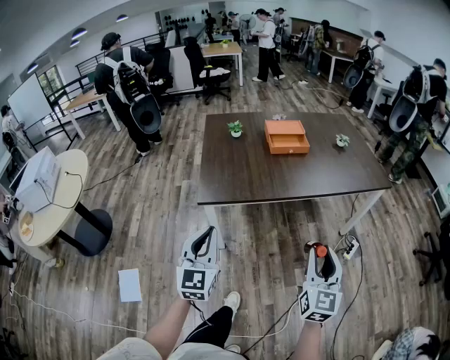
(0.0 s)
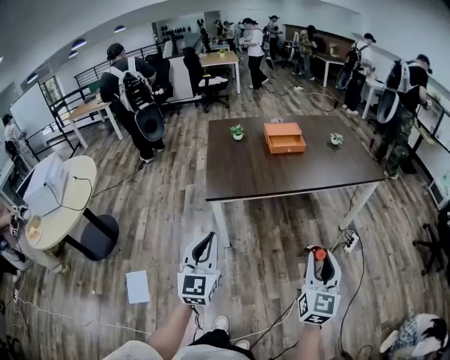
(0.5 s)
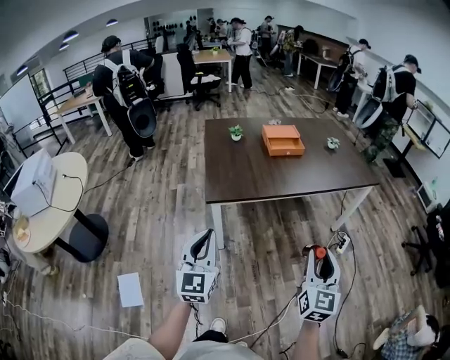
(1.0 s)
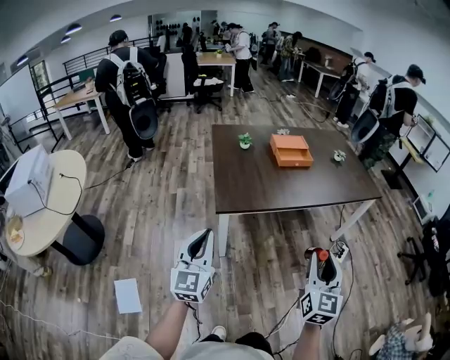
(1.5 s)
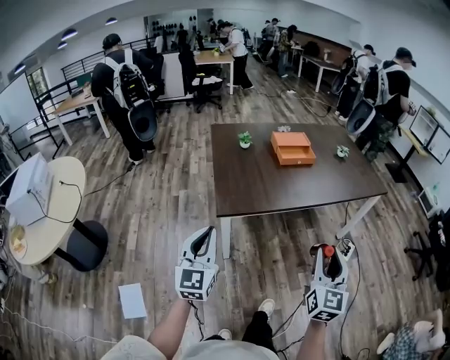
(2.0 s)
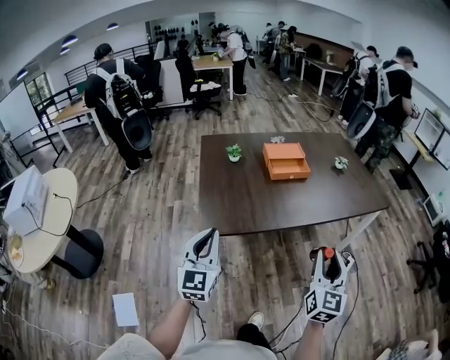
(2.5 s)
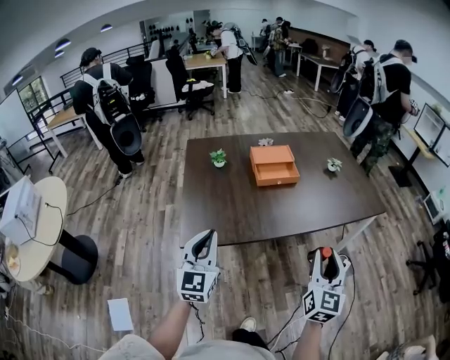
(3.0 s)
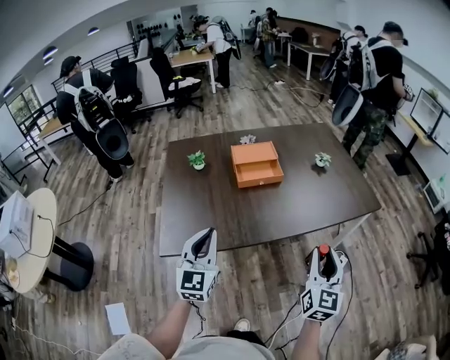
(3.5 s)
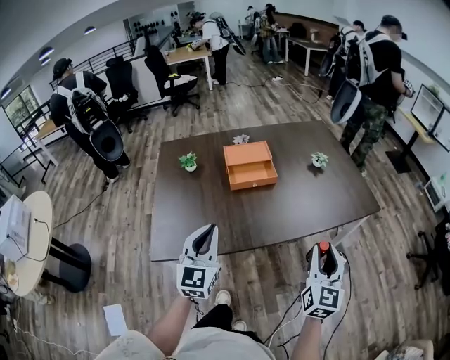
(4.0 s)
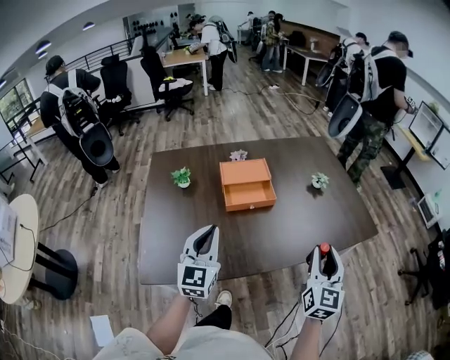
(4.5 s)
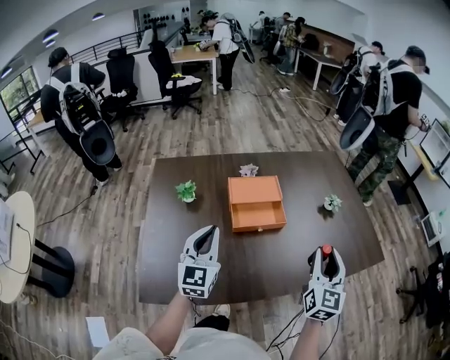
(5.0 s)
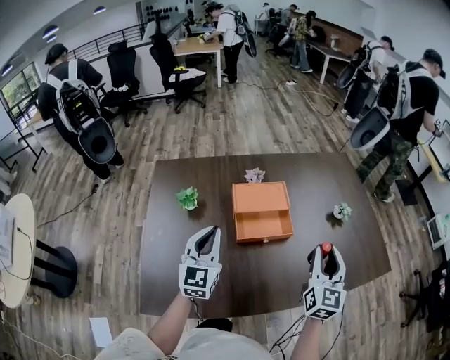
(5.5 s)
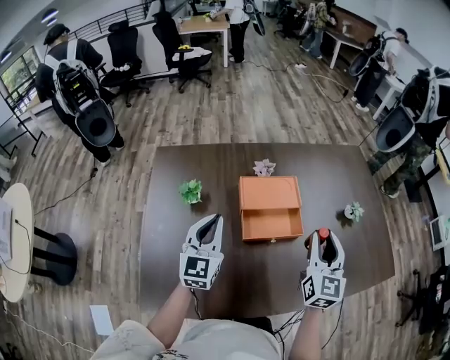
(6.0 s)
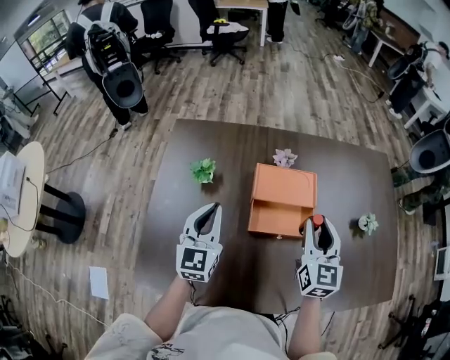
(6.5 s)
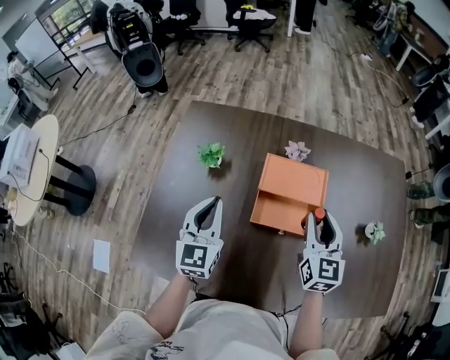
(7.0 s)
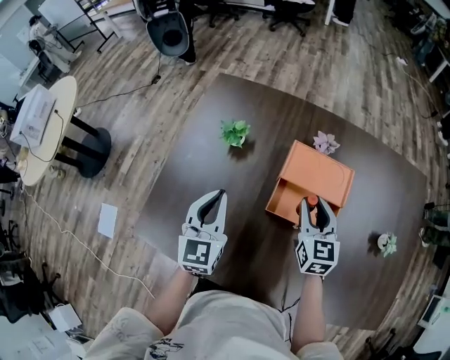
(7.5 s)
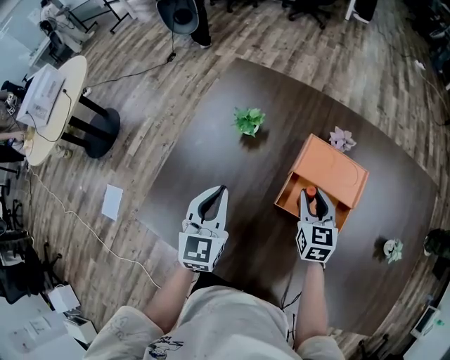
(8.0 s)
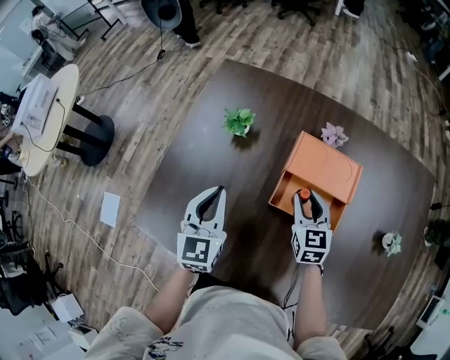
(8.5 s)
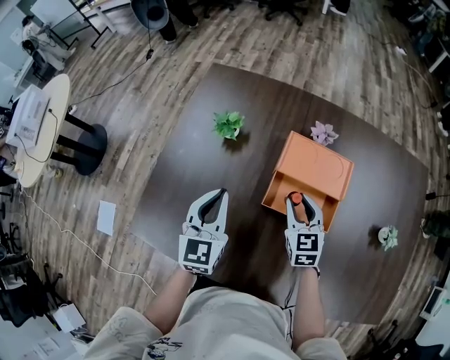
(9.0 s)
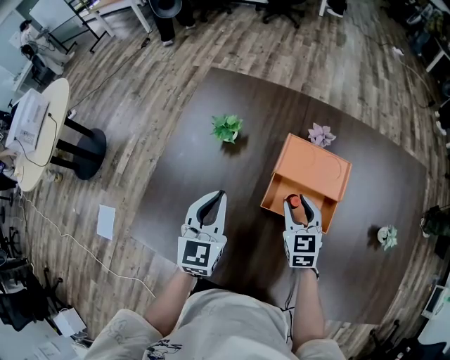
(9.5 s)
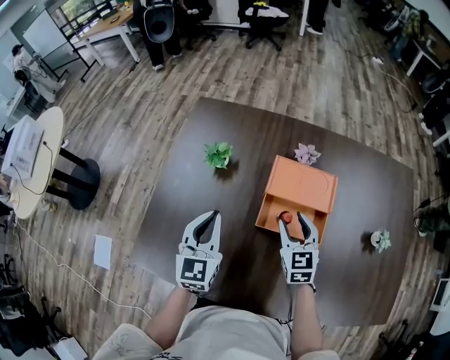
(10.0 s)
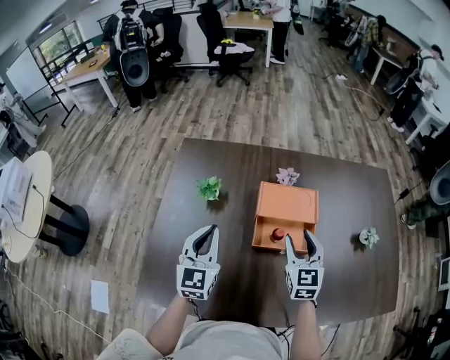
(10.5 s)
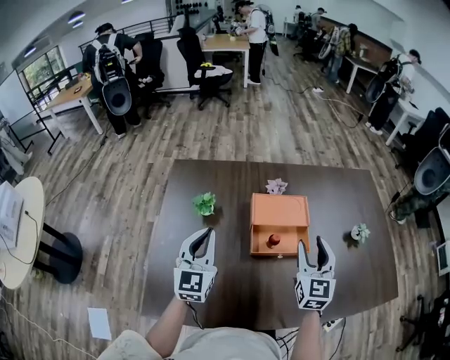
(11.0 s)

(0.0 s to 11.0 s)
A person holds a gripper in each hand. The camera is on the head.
0.0 s - 2.0 s: The left gripper is displaced to the left by roughly 15 cm. The right gripper shifts some 15 cm to the left and upward.
2.0 s - 3.5 s: Both grippers travel together forward and to the right, approximately 35 cm.
3.5 s - 5.5 s: The two grippers go approximately 35 cm forward.
5.5 s - 7.5 s: The left gripper goes about 5 cm downward, and swivels approximately 30 degrees. The right gripper changes place by about 30 cm, and turns by about 40 degrees.
7.5 s - 9.0 s: The right gripper goes approximately 5 cm downward.
9.0 s - 11.0 s: The right gripper travels upward and backward by approximately 20 cm, and swivels roughly 40 degrees. Meanwhile the left gripper heads upward, covering approximately 10 cm, and swivels roughly 20 degrees.

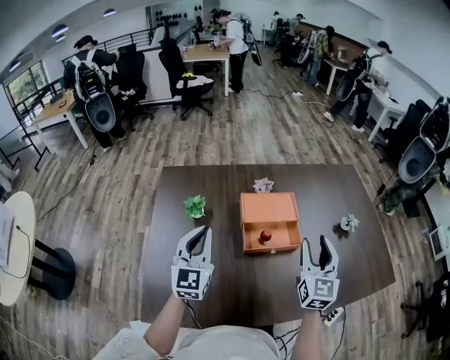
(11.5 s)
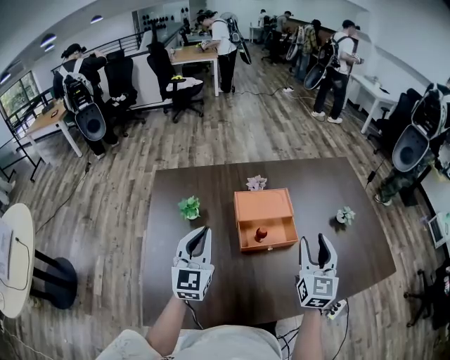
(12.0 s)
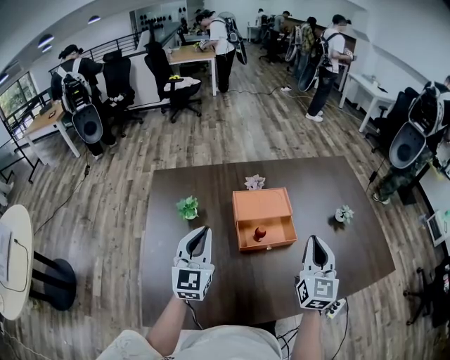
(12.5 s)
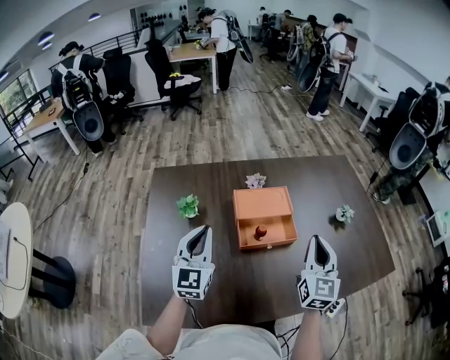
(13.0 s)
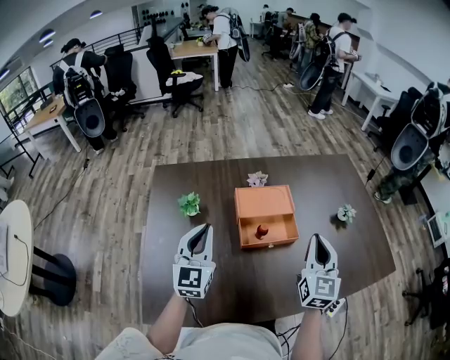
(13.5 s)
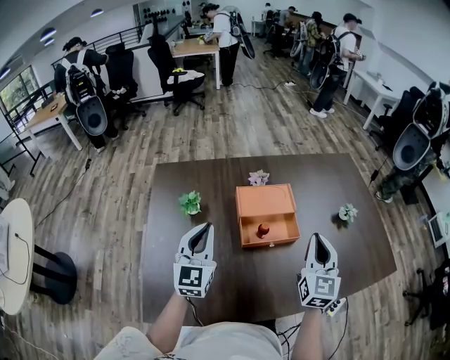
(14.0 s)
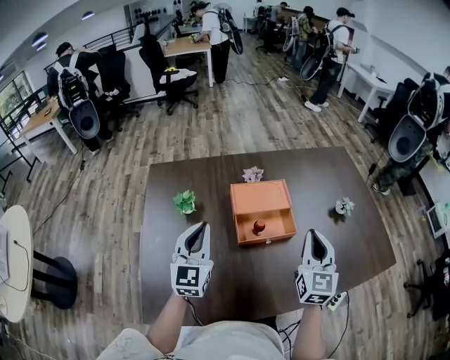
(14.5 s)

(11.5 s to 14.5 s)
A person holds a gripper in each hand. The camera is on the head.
11.5 s - 13.0 s: The right gripper closes up.
13.0 s - 14.5 s: The grippers make only small movements.

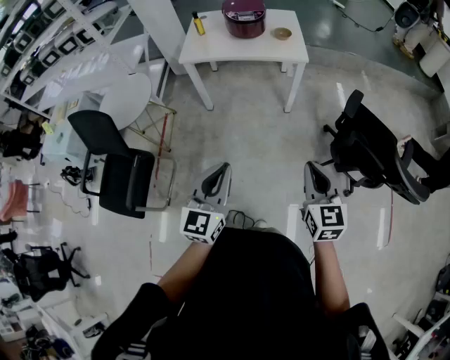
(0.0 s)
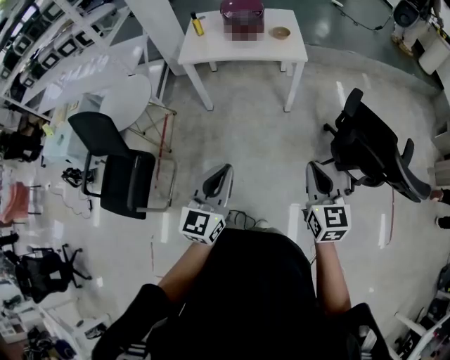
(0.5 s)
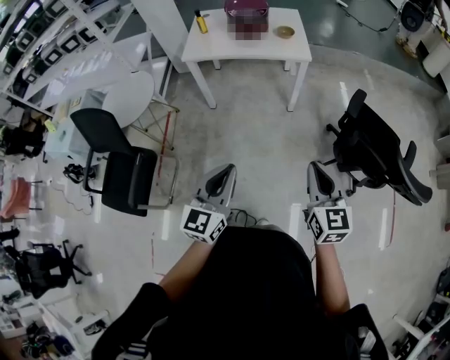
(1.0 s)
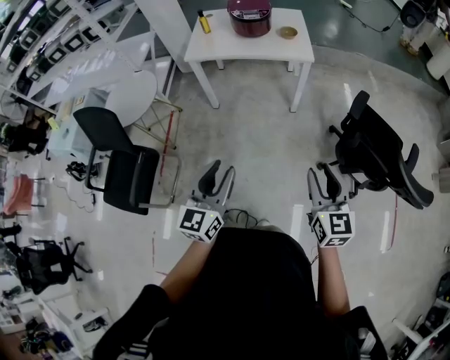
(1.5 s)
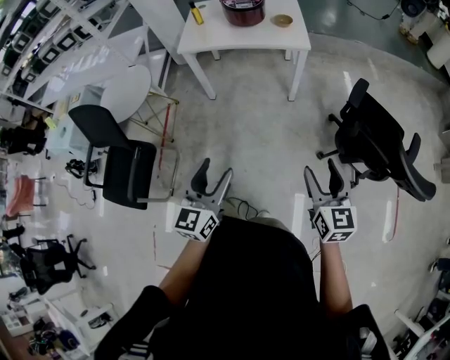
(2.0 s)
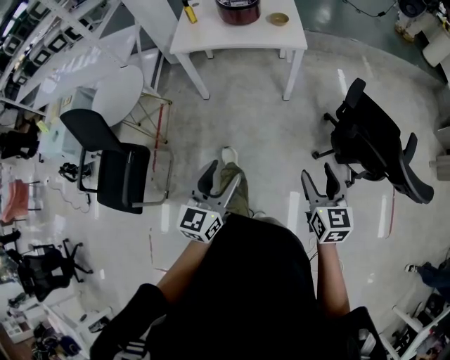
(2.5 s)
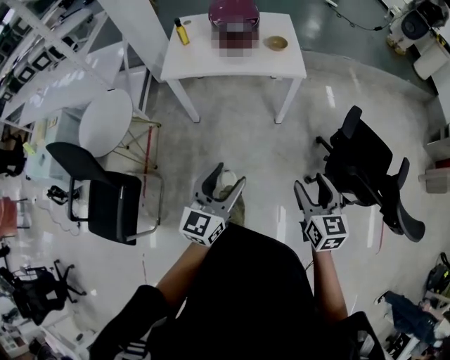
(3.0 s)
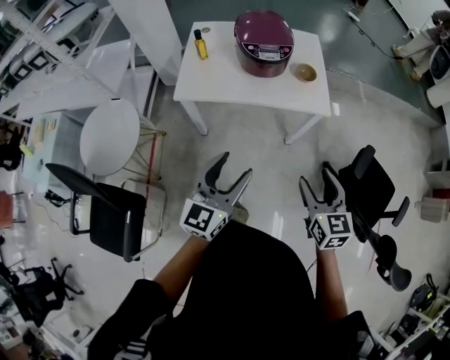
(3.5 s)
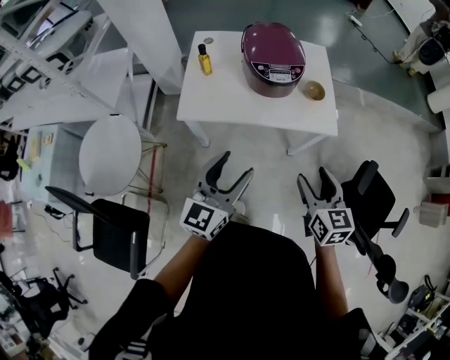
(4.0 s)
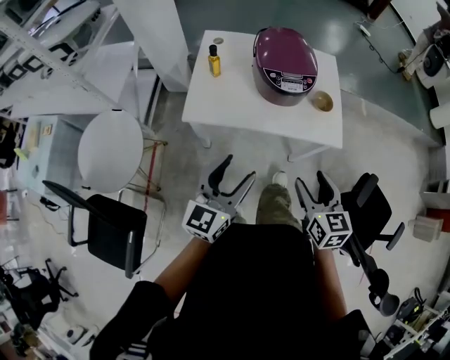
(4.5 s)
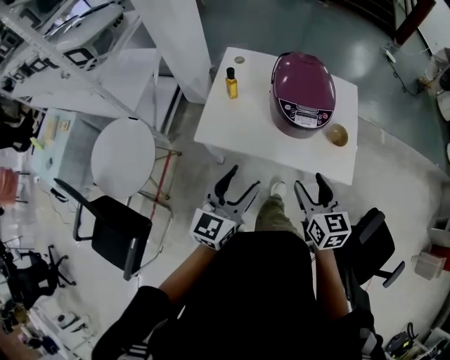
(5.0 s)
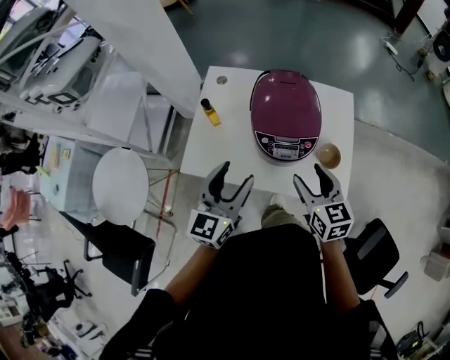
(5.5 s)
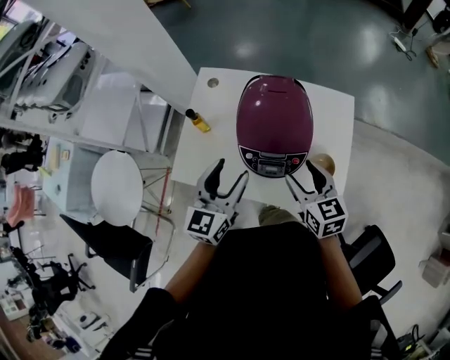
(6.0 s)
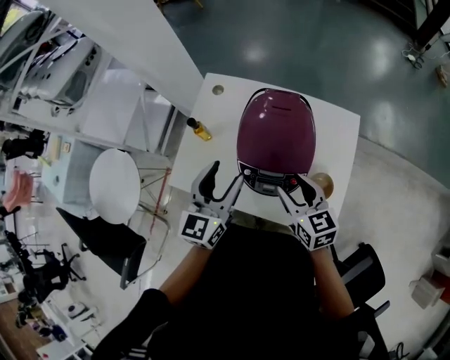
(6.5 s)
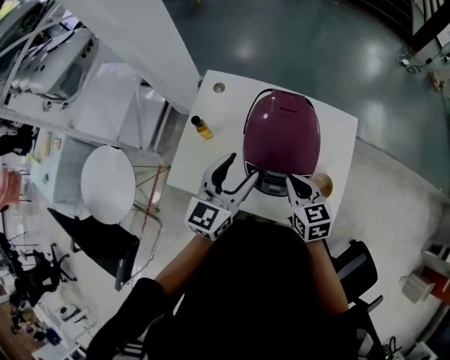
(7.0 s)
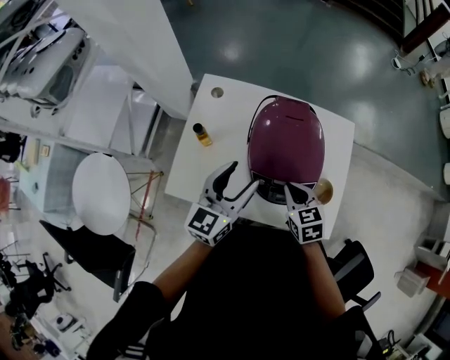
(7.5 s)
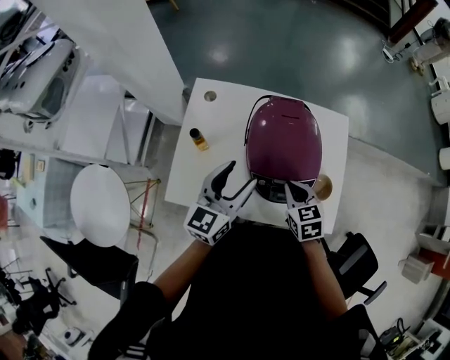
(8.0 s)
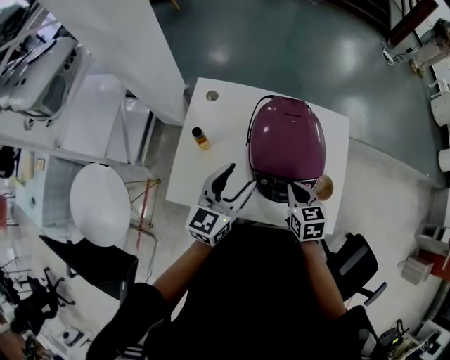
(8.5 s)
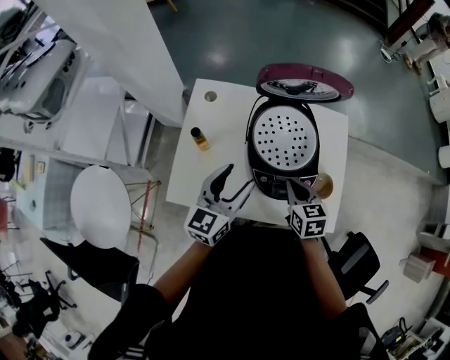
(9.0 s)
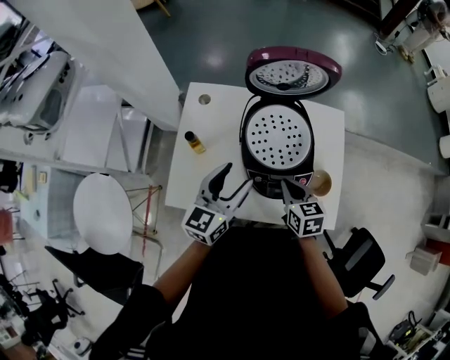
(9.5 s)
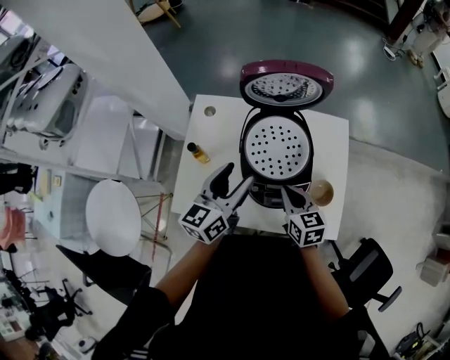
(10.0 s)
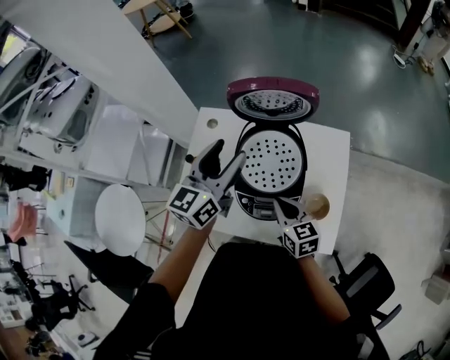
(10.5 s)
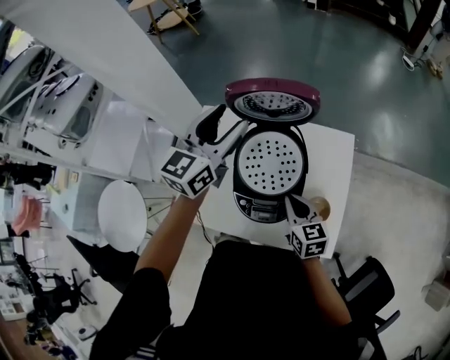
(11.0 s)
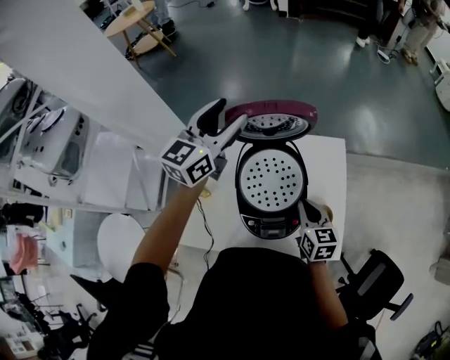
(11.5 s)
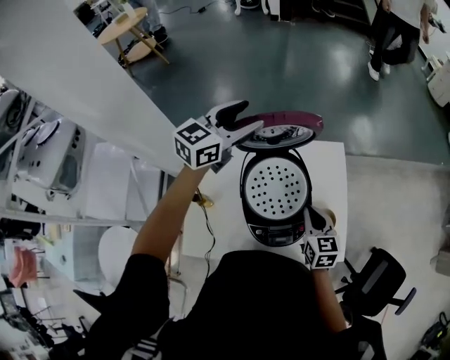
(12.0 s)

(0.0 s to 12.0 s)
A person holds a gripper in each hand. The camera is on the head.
0.0 s - 2.0 s: The left gripper opens its fingers. The right gripper changes place by some 5 cm, and opens.
2.0 s - 4.0 s: The two grippers travel together, forward, some 50 cm.
4.0 s - 6.0 s: The grippers both shift forward by approximately 35 cm. The right gripper turns by roughly 20 degrees.
6.0 s - 8.0 s: The left gripper shifts approximately 5 cm forward; the right gripper goes roughly 10 cm downward and to the left, turns by about 20 degrees, and closes.
8.0 s - 10.0 s: The grippers move only a little.
10.0 s - 12.0 s: The right gripper shifts by some 10 cm. Meanwhile the left gripper changes place by approximately 30 cm, and swivels some 40 degrees.

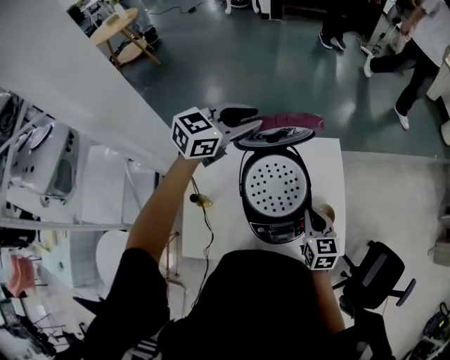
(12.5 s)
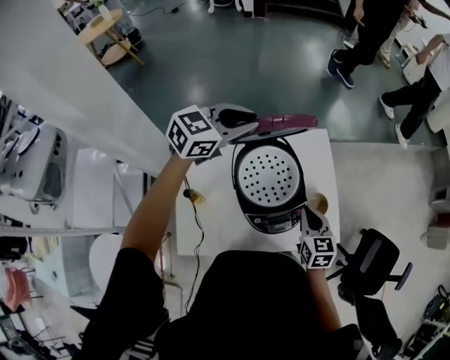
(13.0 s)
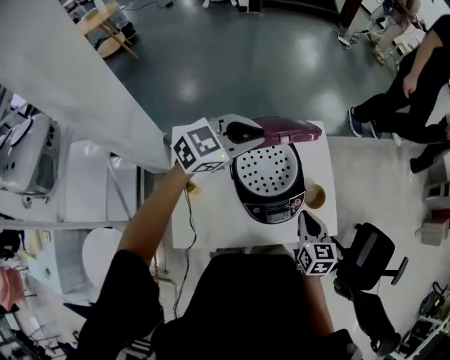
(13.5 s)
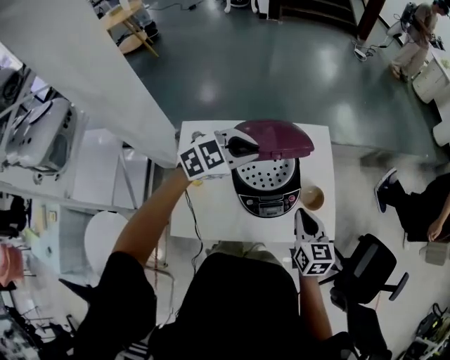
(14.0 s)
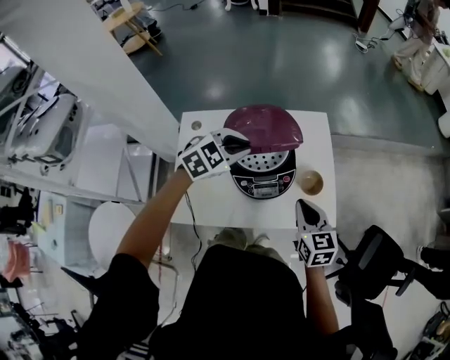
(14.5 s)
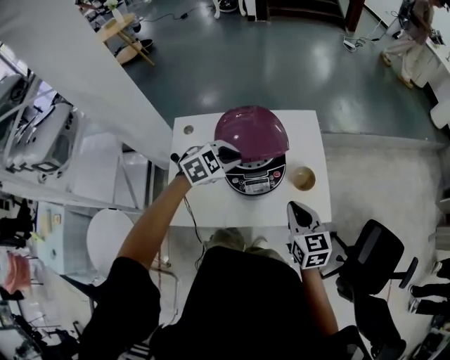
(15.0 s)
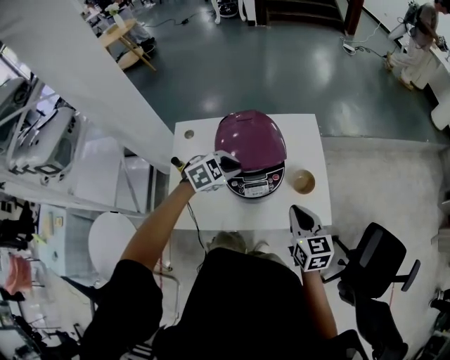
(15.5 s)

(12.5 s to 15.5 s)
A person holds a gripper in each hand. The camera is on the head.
12.5 s - 14.0 s: The left gripper goes approximately 20 cm backward, to the right and downward, and turns by about 30 degrees. Meanwhile the right gripper travels backward and to the right by roughly 10 cm.
14.0 s - 15.5 s: The right gripper shifts roughly 10 cm to the right and backward. Meanwhile the left gripper is displaced downward and backward by roughly 15 cm.
